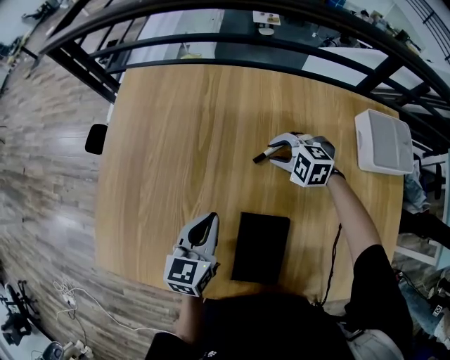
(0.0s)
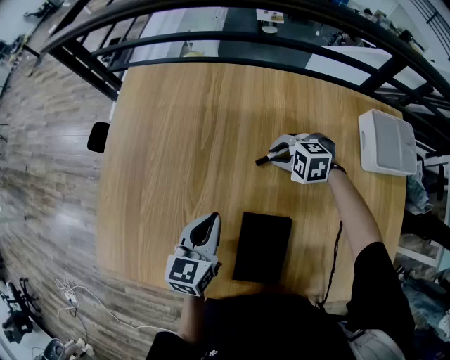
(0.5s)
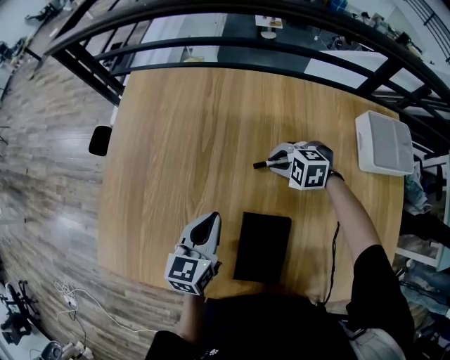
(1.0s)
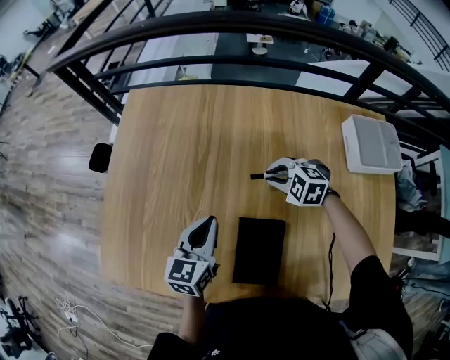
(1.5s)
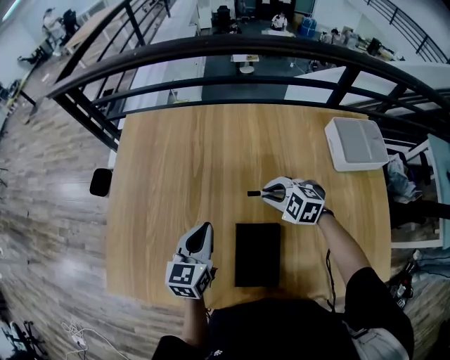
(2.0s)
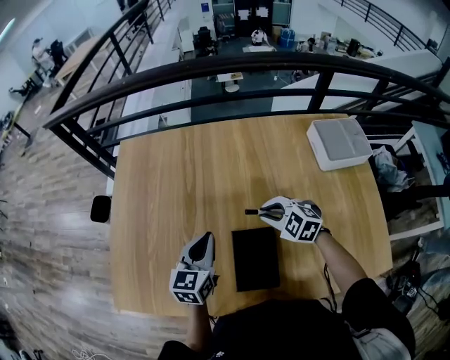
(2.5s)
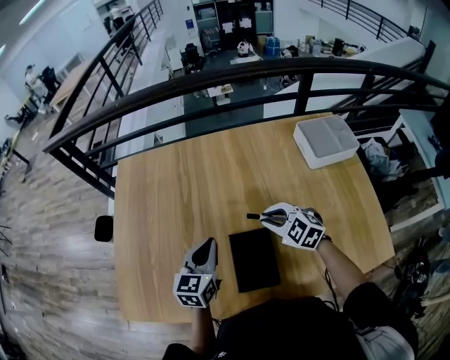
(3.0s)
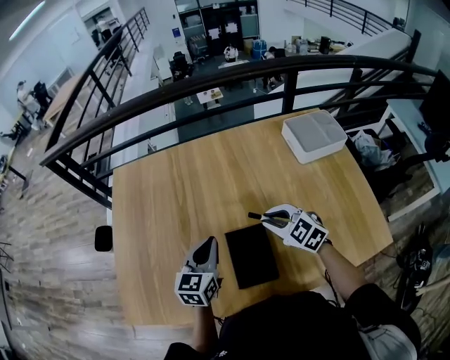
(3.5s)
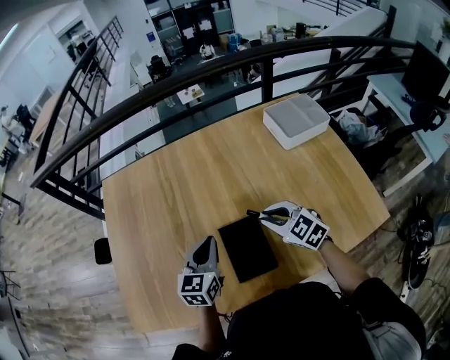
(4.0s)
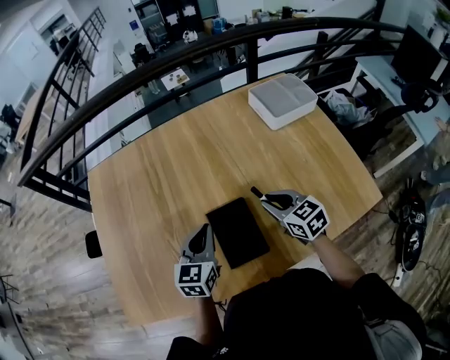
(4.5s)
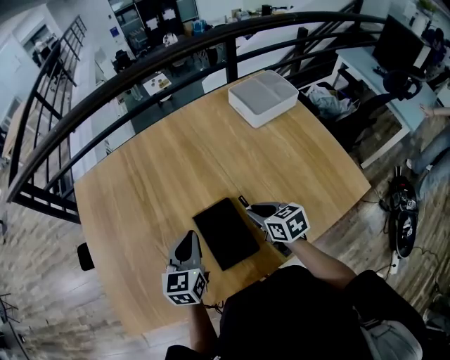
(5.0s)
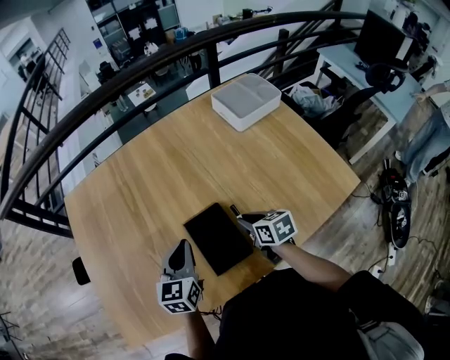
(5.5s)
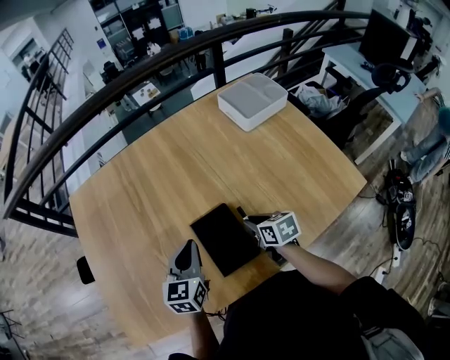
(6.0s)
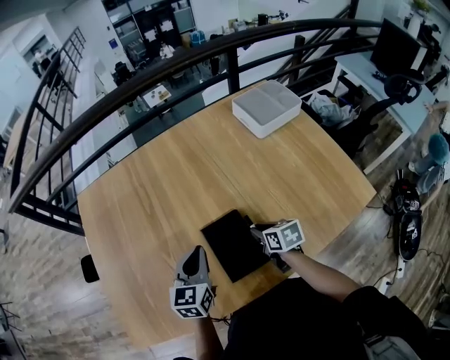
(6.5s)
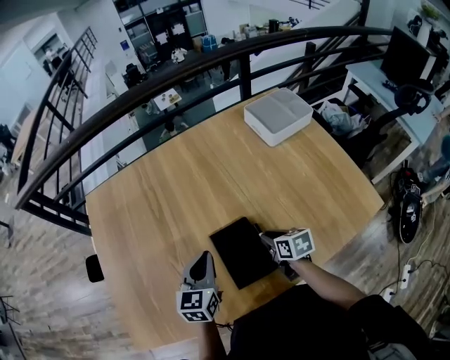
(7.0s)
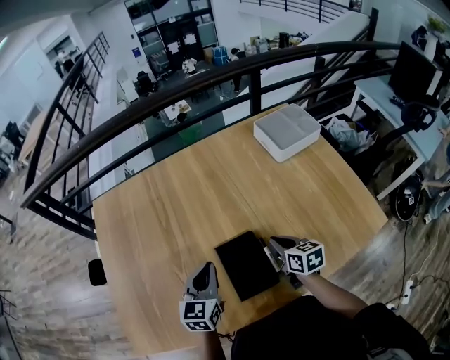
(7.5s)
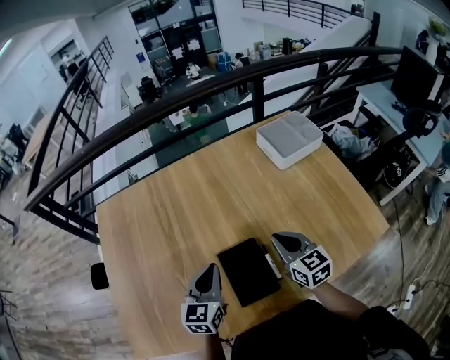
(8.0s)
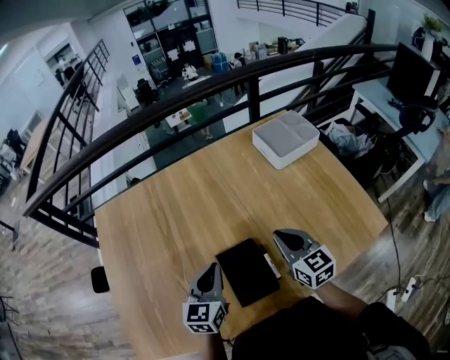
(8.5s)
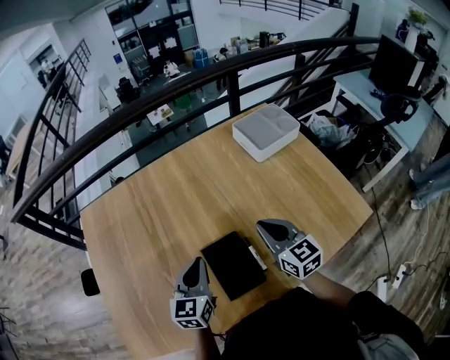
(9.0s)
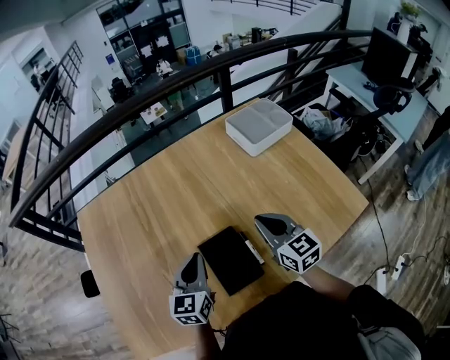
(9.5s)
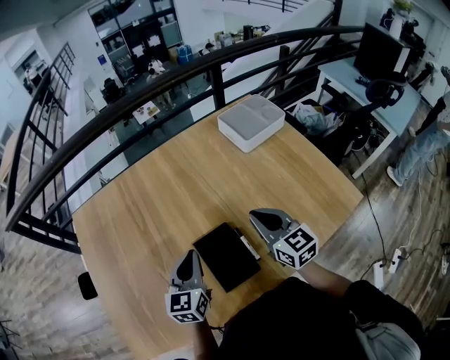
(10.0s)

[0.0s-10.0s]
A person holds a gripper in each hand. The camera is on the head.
0.0s to 2.0s: The right gripper shifts roughly 10 cm backward and upward.
2.0s to 4.0s: The left gripper heads backward and to the right, covering about 10 cm. Meanwhile the right gripper is displaced backward and upward by approximately 15 cm, and rotates approximately 40 degrees.
4.0s to 6.0s: The right gripper shifts some 10 cm downward, and twists approximately 50 degrees clockwise, seen from behind.
6.0s to 8.0s: The right gripper moves upward, some 10 cm, and swivels about 30 degrees.
8.0s to 10.0s: There are only small adjustments of the grippers.

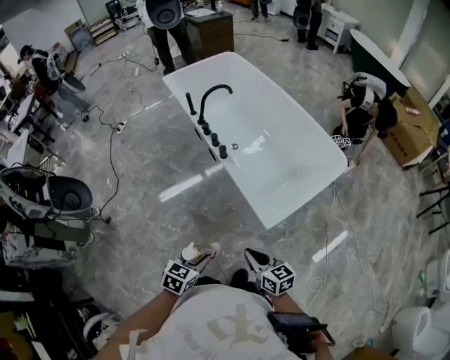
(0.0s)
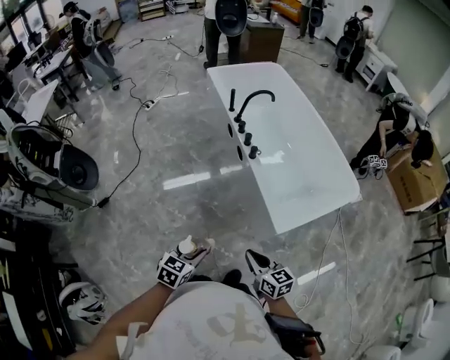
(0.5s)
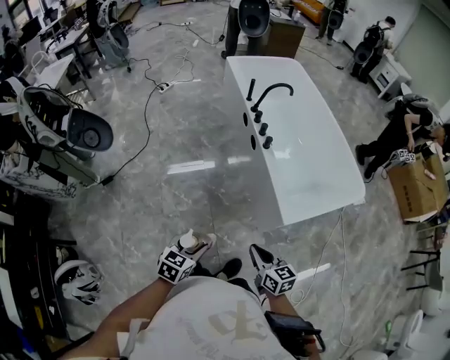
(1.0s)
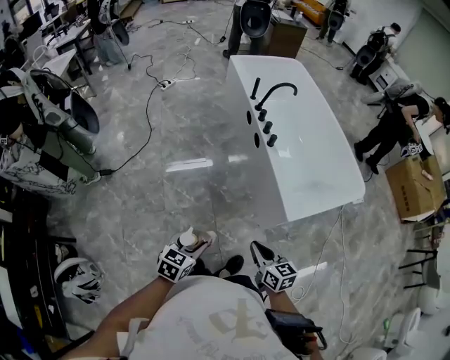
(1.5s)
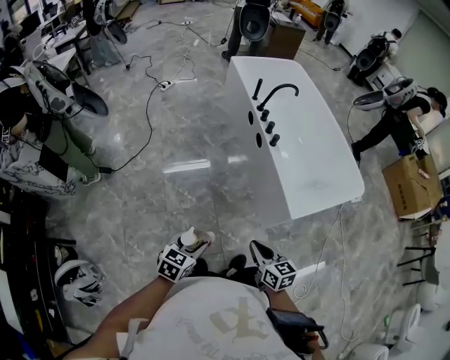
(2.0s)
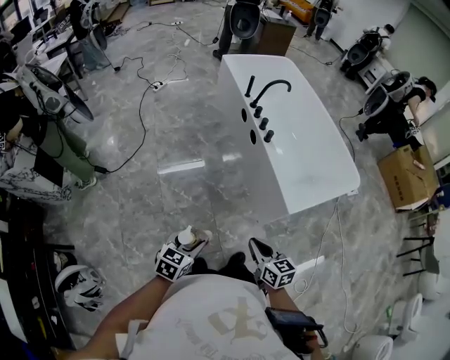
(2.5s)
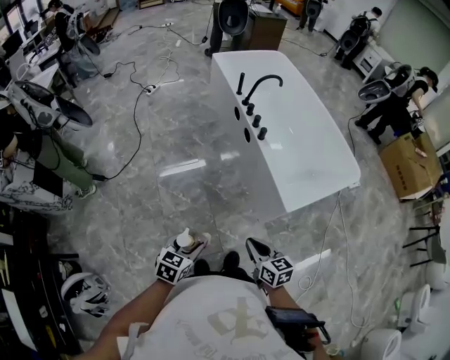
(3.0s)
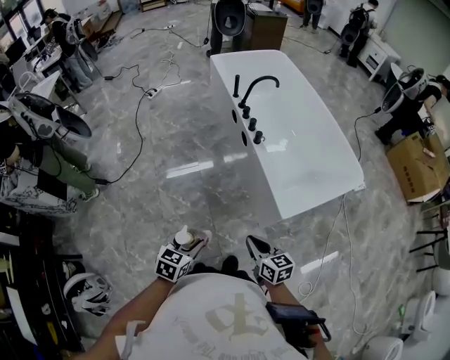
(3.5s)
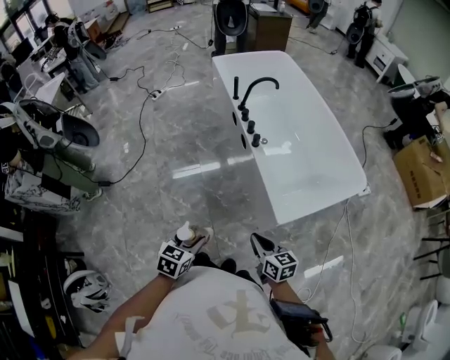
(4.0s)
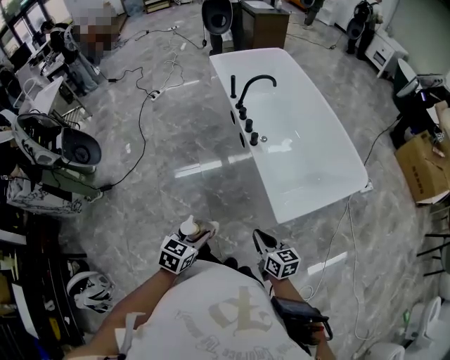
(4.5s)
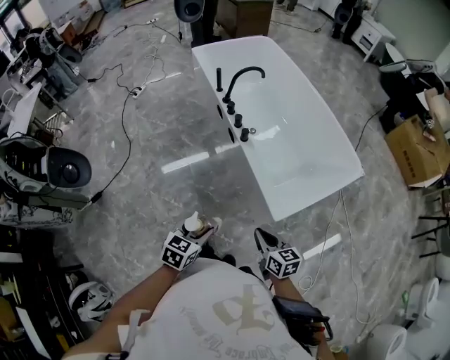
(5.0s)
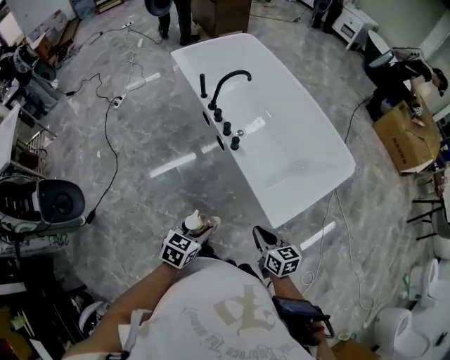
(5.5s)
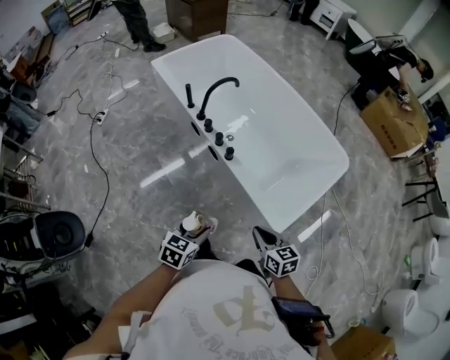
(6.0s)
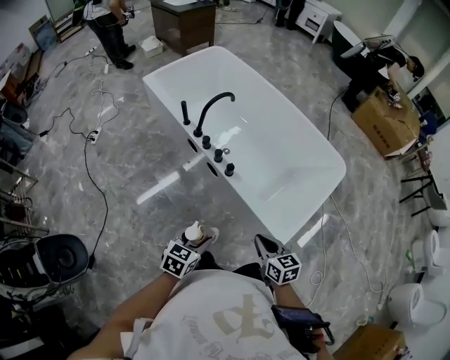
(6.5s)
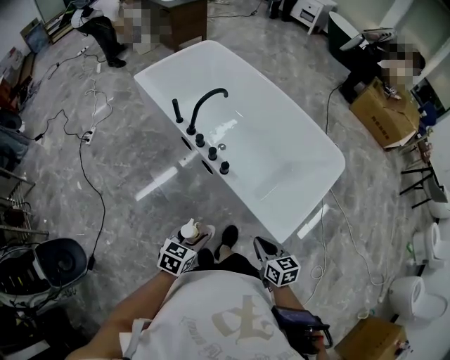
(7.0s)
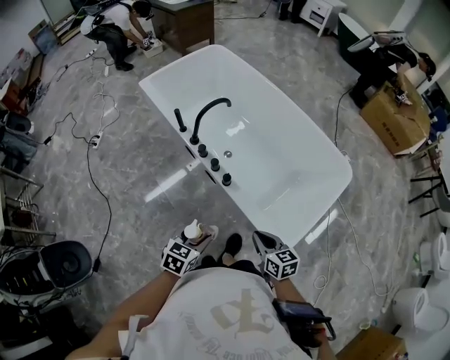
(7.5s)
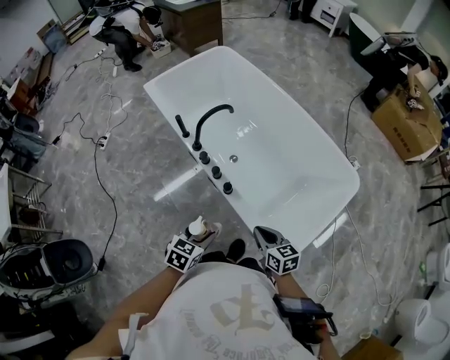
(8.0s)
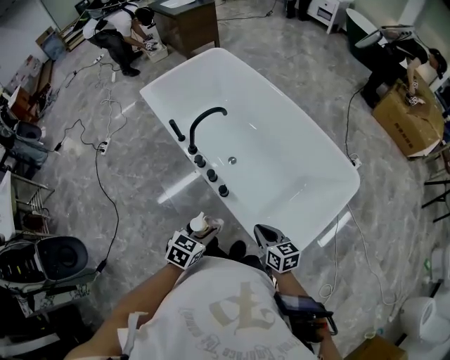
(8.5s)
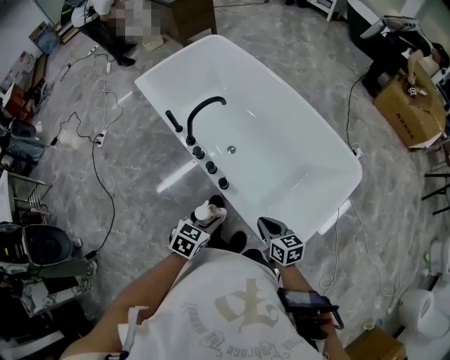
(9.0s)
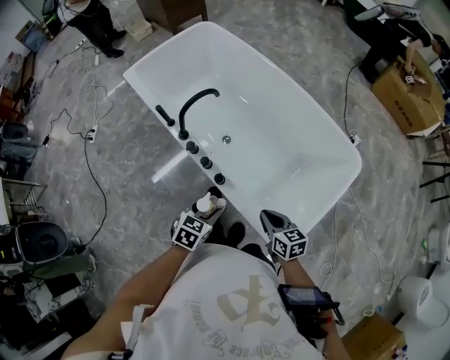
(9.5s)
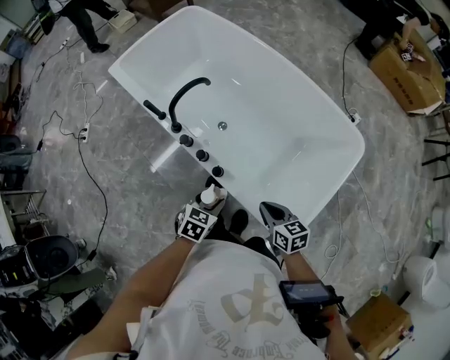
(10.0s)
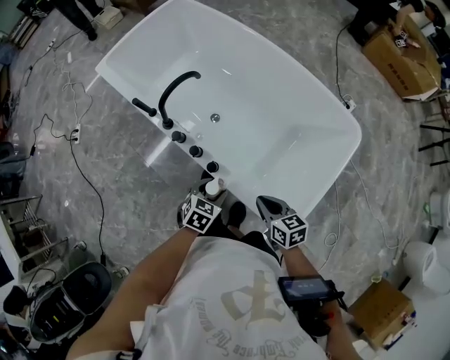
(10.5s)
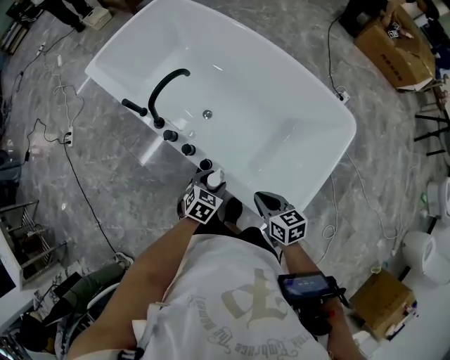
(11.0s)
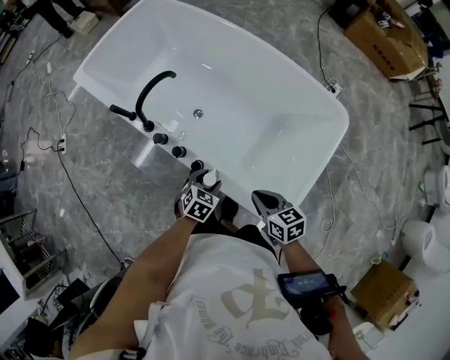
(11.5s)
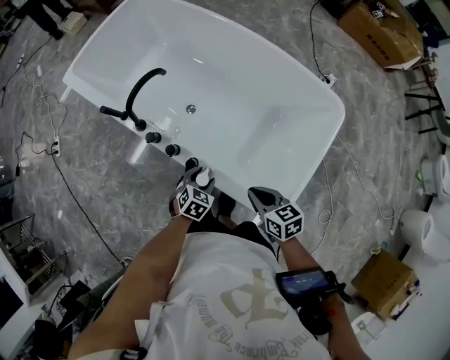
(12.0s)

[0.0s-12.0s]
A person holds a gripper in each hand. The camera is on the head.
0.0s to 2.0s: Both grippers travel together to the left and backward, roughly 25 cm.
2.0s to 4.0s: Both grippers move to the right and forward, some 15 cm.
4.0s to 6.0s: Both grippers travel together forward, roughly 20 cm. The right gripper changes its angle by roughly 20 degrees; the left gripper turns by some 20 degrees.
6.0s to 8.0s: The grippers both shift forward by some 15 cm.
8.0s to 10.0s: The right gripper goes about 10 cm forward. Meanwhile the left gripper travels forward, downward and to the right by approximately 15 cm.
10.0s to 12.0s: The left gripper moves downward, roughly 10 cm.

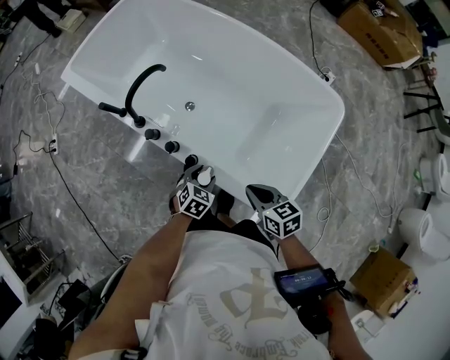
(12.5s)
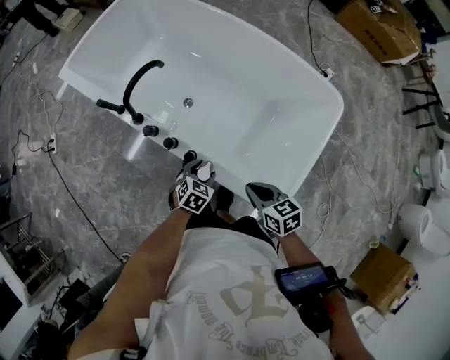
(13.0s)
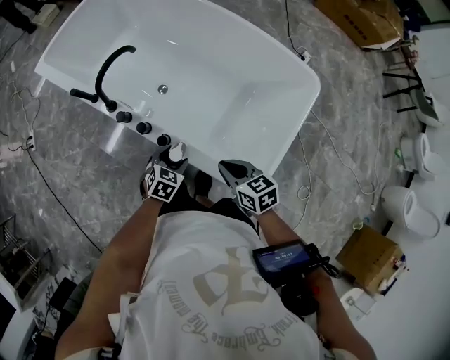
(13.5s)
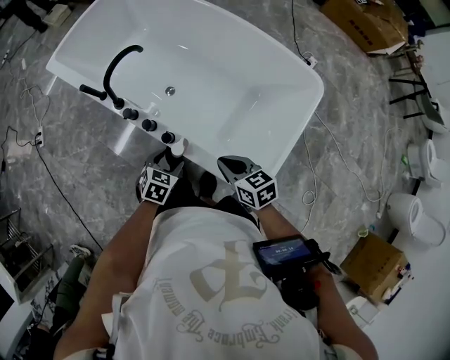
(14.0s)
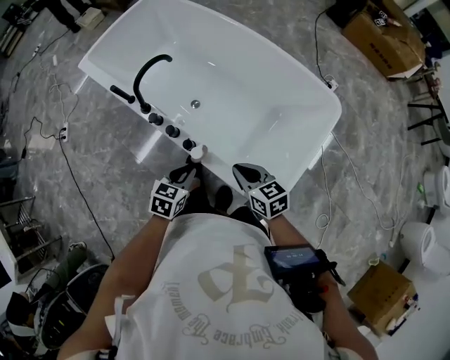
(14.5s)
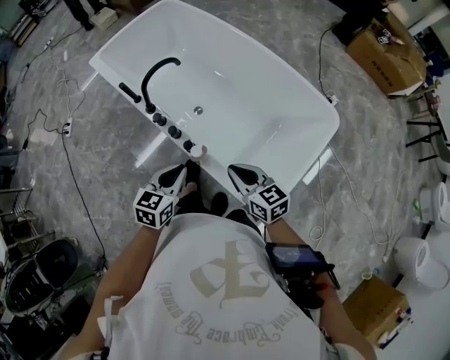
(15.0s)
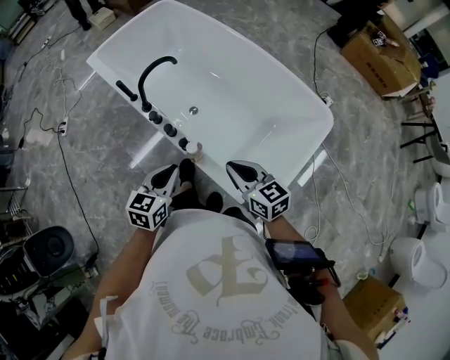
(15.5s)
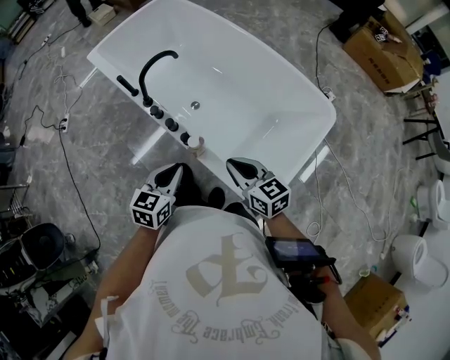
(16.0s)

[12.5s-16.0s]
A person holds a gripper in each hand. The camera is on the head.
12.5s to 14.5s: The left gripper travels upward and backward by some 10 cm, and closes up.
14.5s to 16.0s: The two grippers go some 10 cm upward.

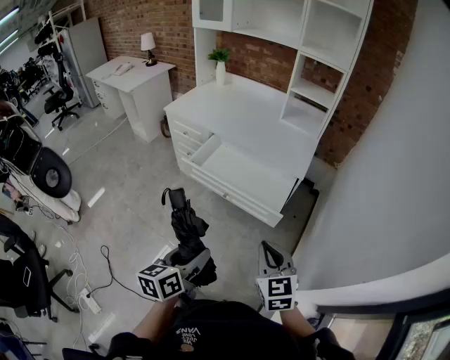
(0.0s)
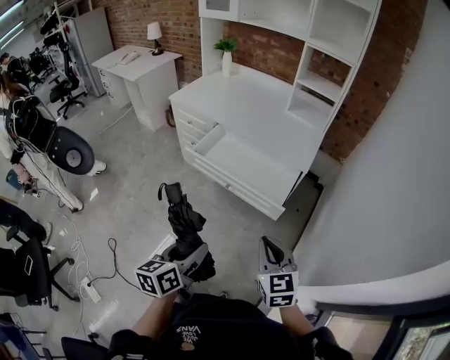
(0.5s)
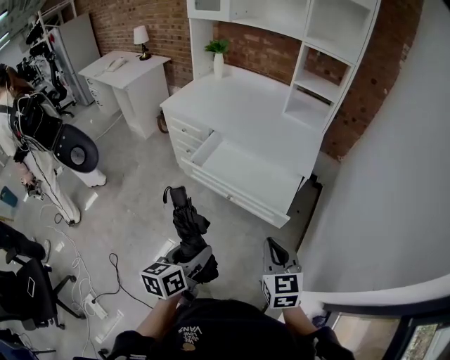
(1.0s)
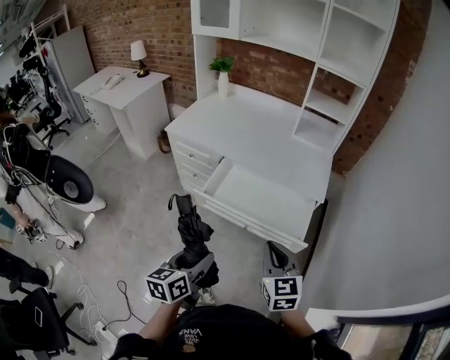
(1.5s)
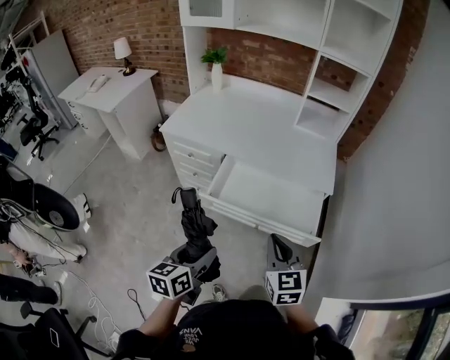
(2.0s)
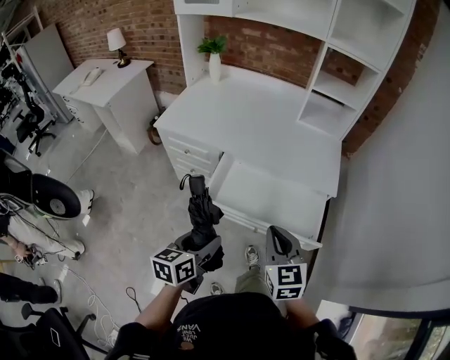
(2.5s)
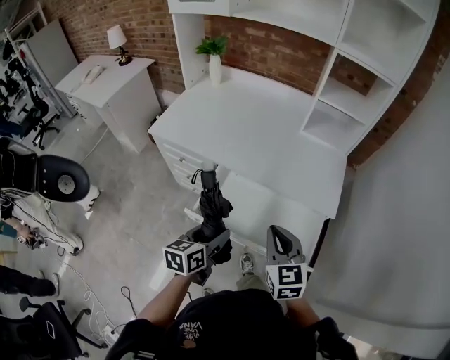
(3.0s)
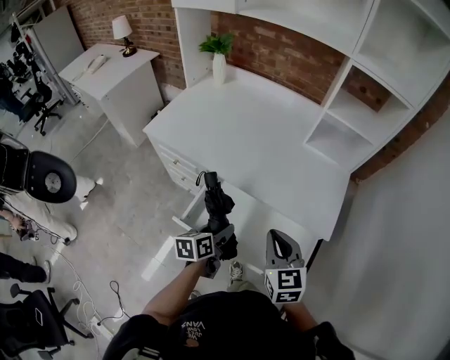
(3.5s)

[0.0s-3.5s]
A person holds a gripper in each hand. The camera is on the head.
0.0s to 2.0s: The left gripper is displaced forward and to the left by about 30 cm. The right gripper goes about 30 cm to the left and forward.
2.0s to 3.5s: The right gripper shifts about 25 cm forward; the left gripper is displaced forward and downward by some 35 cm.
